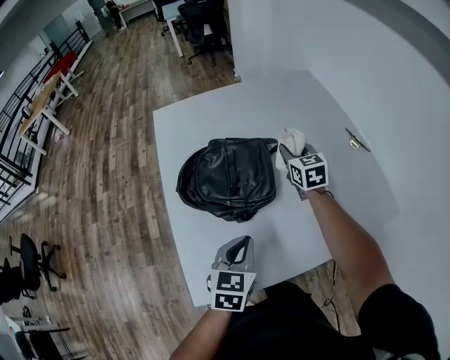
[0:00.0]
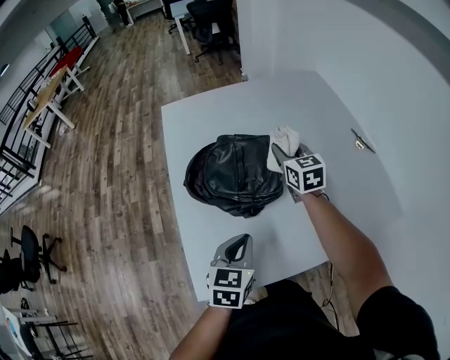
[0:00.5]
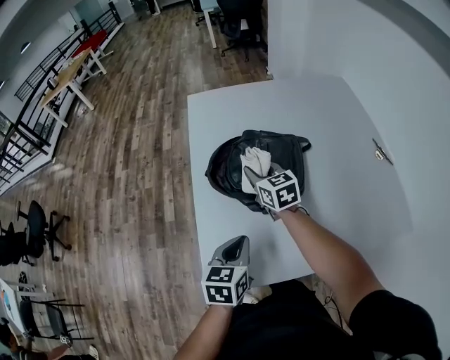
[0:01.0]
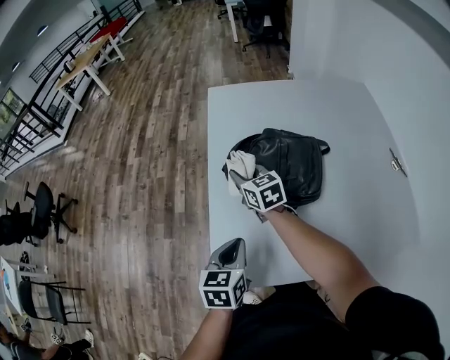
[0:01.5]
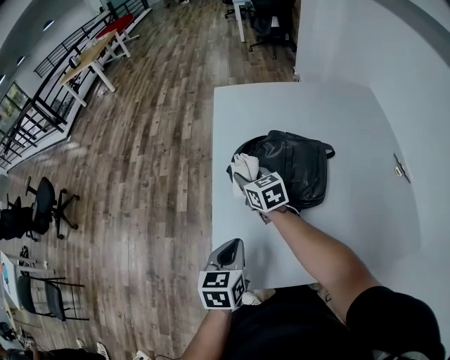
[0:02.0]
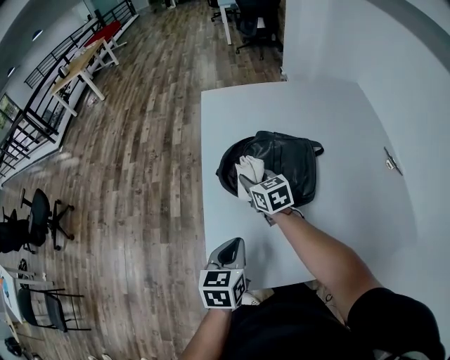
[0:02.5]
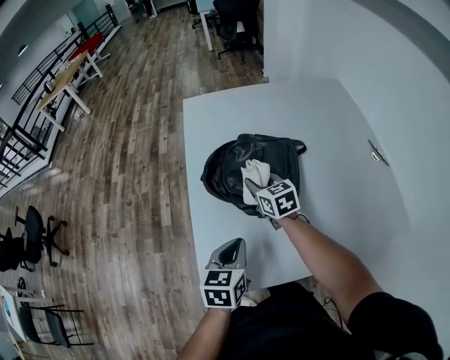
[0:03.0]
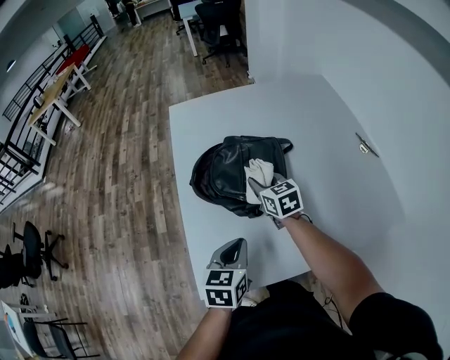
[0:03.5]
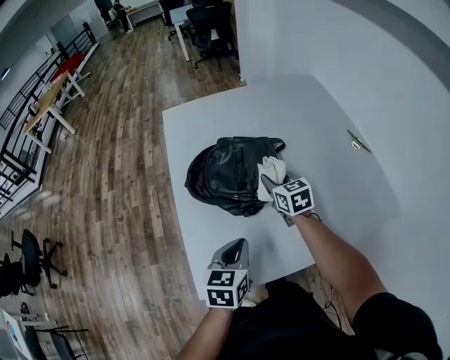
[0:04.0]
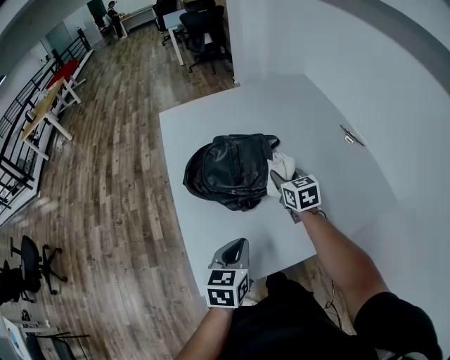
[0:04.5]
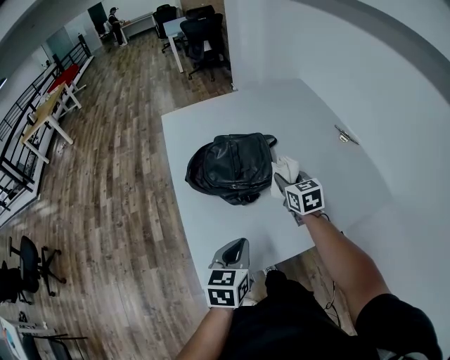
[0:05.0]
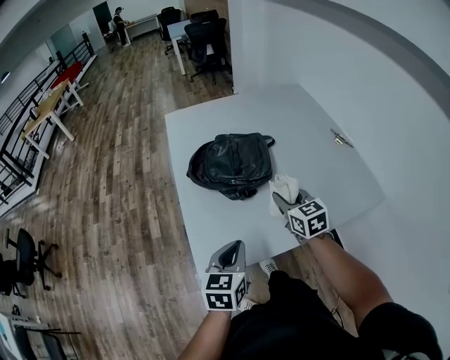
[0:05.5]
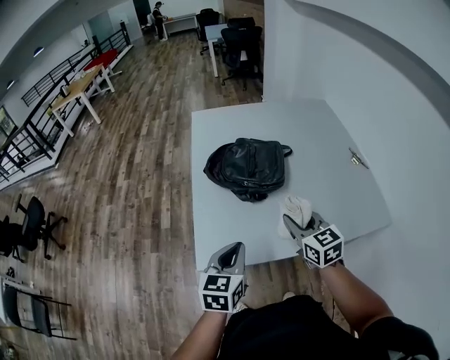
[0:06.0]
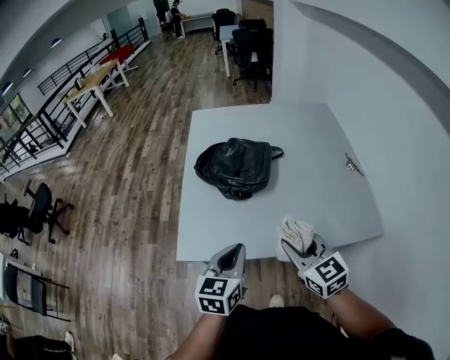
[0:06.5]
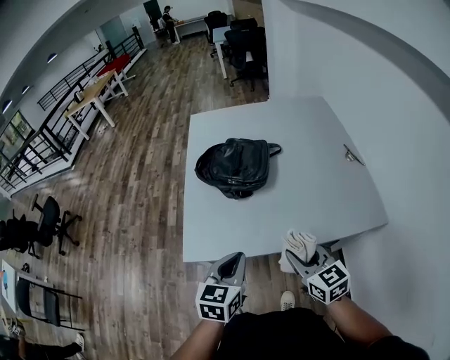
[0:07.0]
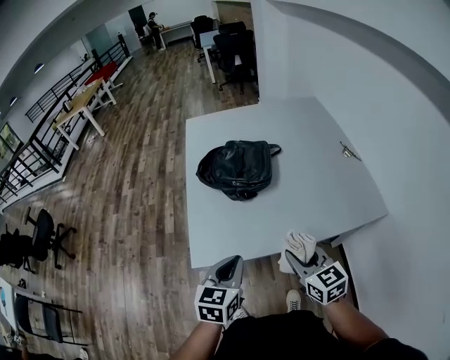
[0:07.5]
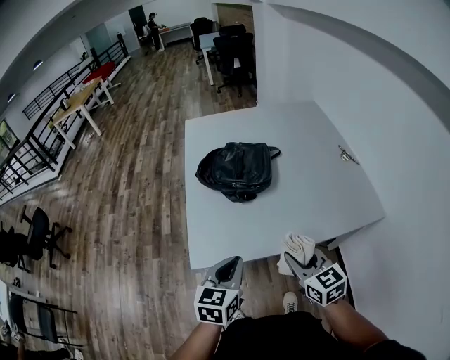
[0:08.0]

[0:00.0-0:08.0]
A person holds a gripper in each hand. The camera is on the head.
0:00.0 to 0:02.0: The left gripper shifts by approximately 15 cm, and turns by roughly 30 degrees. Meanwhile the right gripper shifts by about 35 cm, and turns by roughly 30 degrees.
0:02.0 to 0:04.0: The right gripper goes some 25 cm to the right, and turns by about 20 degrees; the left gripper is displaced to the right by some 10 cm.
0:04.0 to 0:06.0: The right gripper travels backward and upward by about 25 cm. The left gripper shifts some 15 cm backward and upward.
0:06.0 to 0:08.0: The left gripper heads backward, covering approximately 5 cm, and goes to the right and returns, roughly 10 cm each way; the right gripper travels backward by roughly 15 cm.

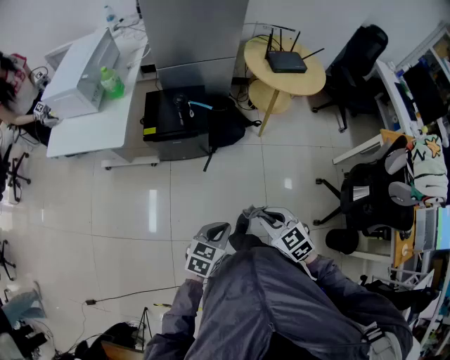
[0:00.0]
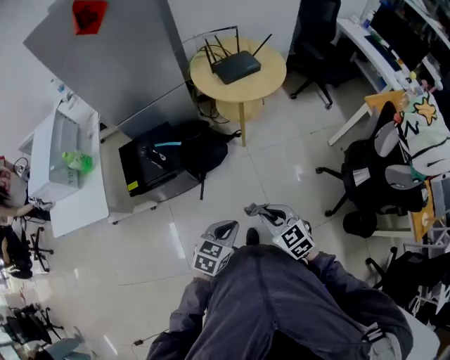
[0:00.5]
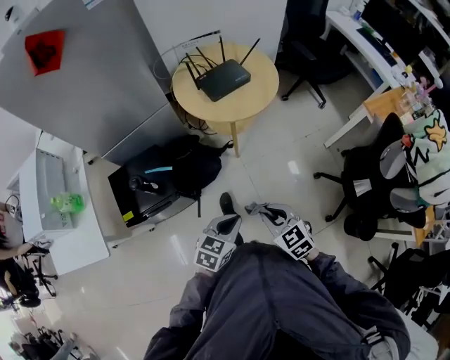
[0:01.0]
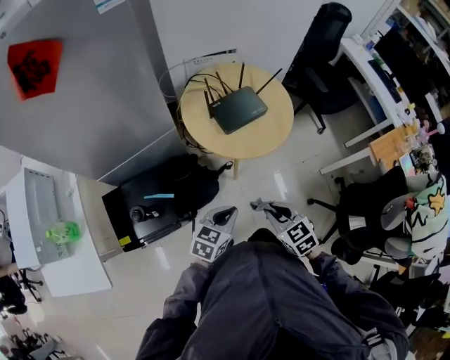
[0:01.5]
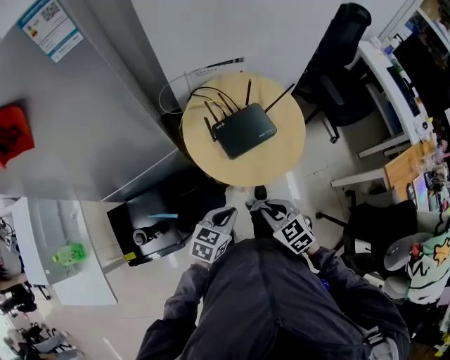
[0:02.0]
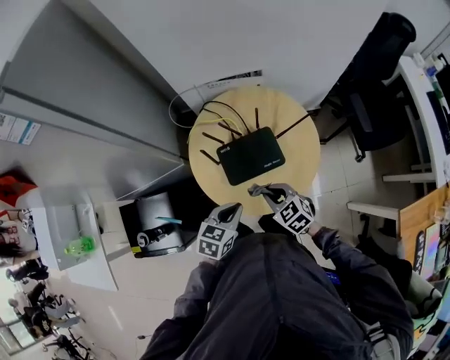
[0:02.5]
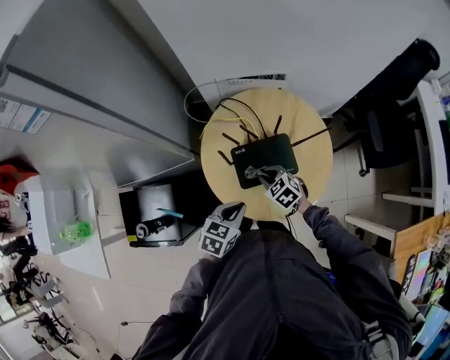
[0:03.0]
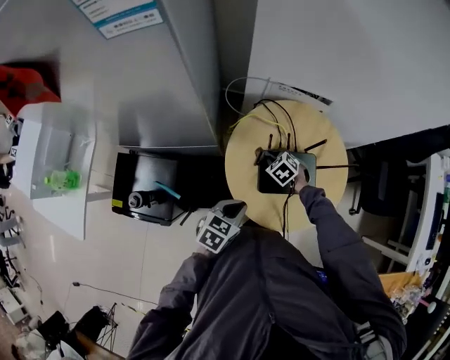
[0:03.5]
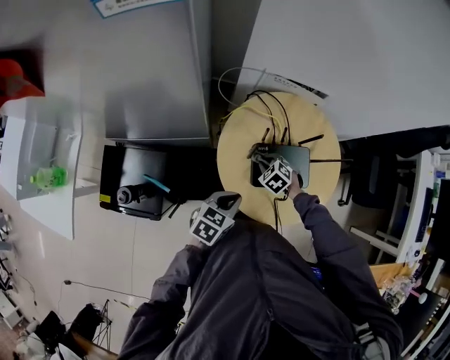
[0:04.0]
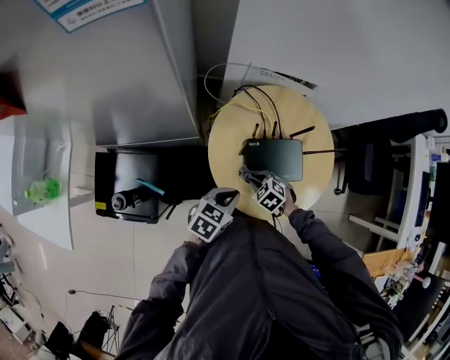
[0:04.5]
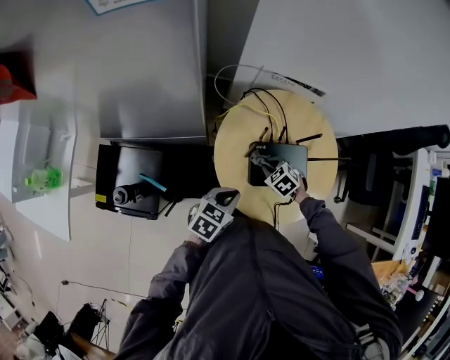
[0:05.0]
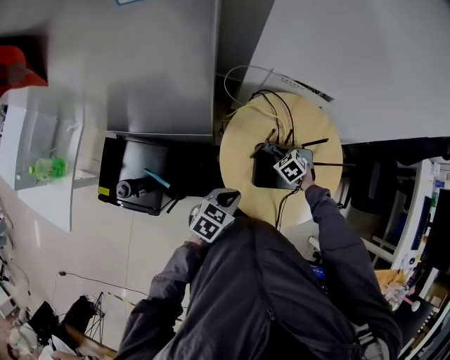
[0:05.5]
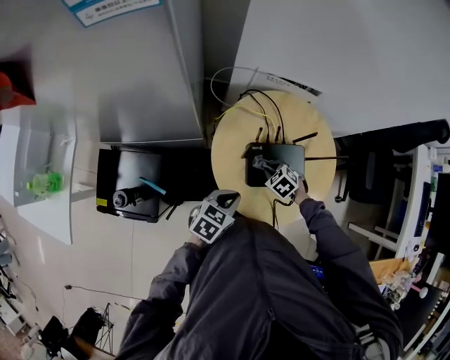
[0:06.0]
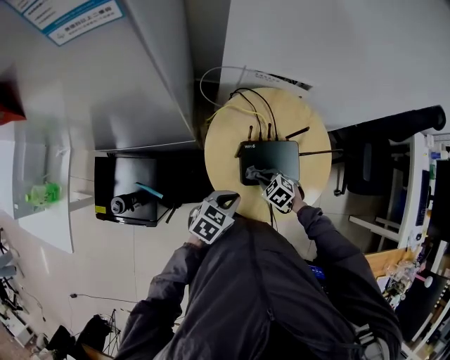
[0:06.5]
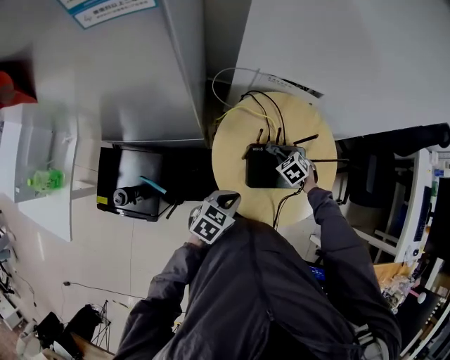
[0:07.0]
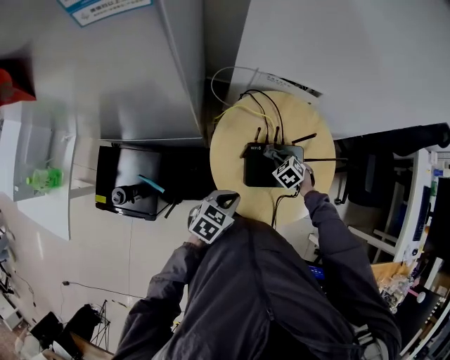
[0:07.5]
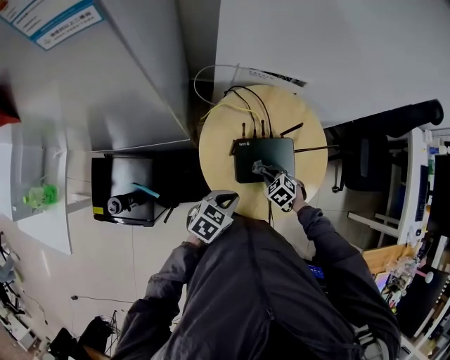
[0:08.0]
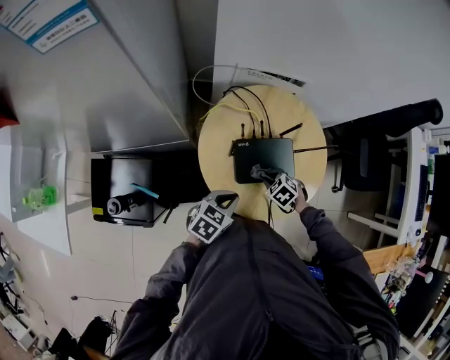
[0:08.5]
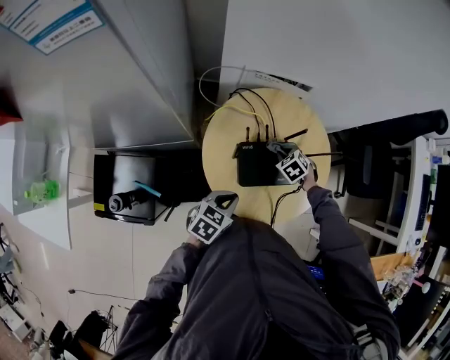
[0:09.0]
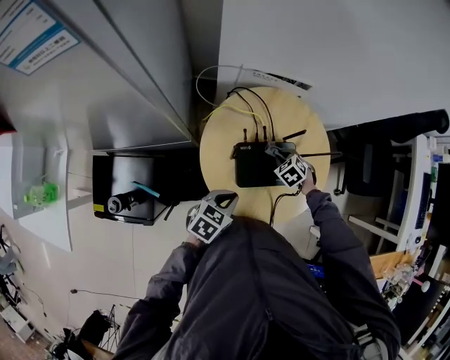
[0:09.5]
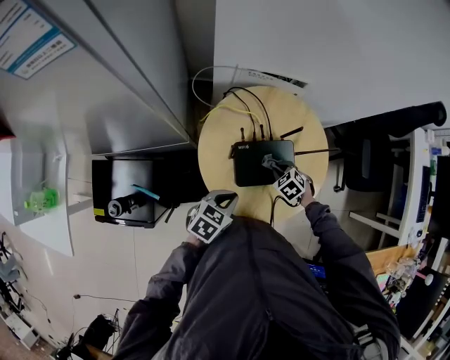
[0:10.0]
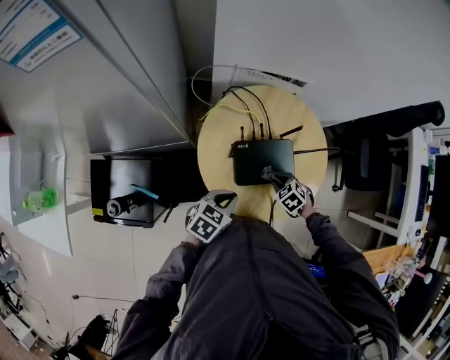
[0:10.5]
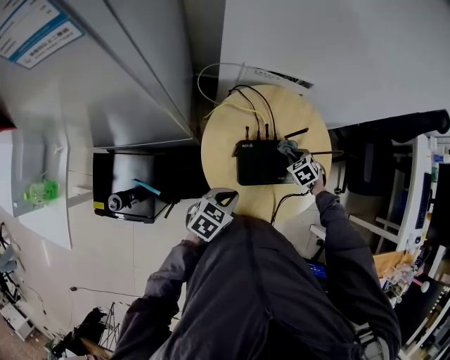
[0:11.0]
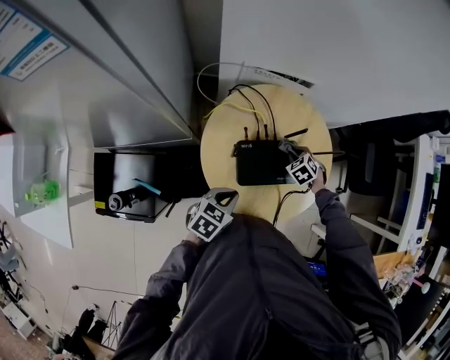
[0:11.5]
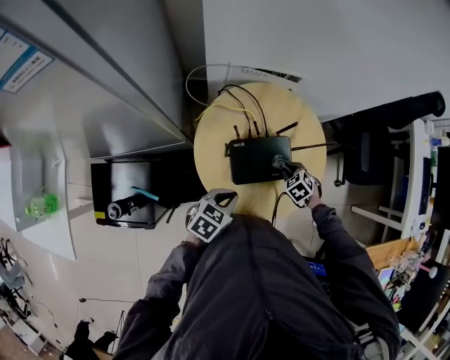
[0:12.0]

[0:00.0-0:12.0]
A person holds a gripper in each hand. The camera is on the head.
0:00.0 to 0:02.0: The pair of grippers is taken forward, about 60 cm.
0:02.0 to 0:04.0: The right gripper moves forward and downward, approximately 35 cm, and changes its angle by about 40 degrees. The left gripper goes approximately 15 cm forward, and changes its angle by about 20 degrees.
0:04.0 to 0:06.0: The right gripper goes forward and backward, approximately 15 cm each way, reversing 2 times.
0:06.0 to 0:08.0: The right gripper moves forward and backward over about 10 cm, changing direction 2 times.
0:10.0 to 0:12.0: The right gripper goes forward and backward, roughly 15 cm each way, reversing 2 times.

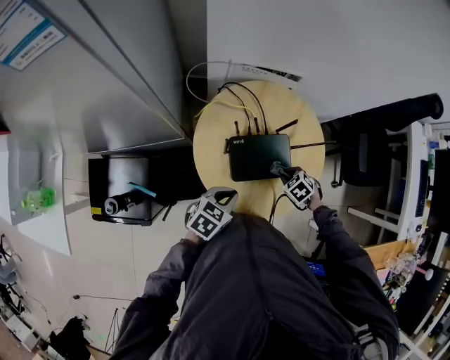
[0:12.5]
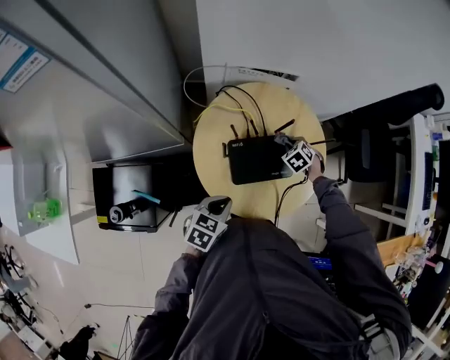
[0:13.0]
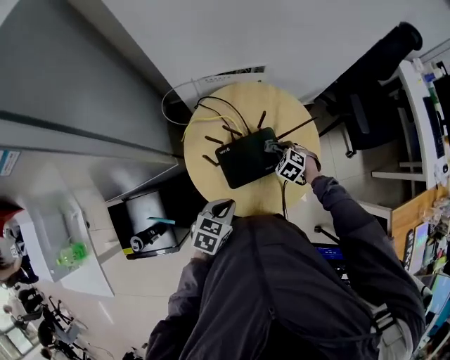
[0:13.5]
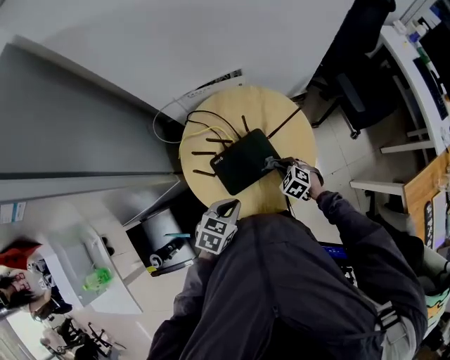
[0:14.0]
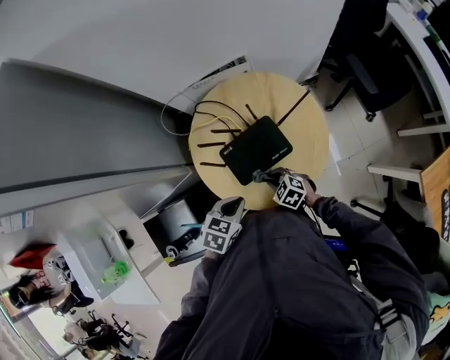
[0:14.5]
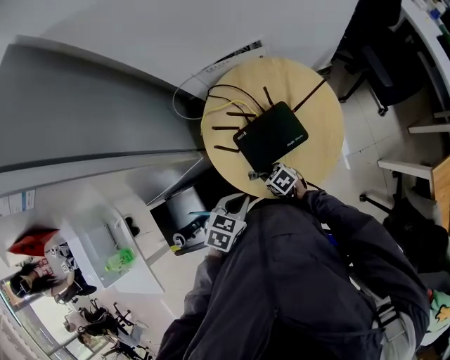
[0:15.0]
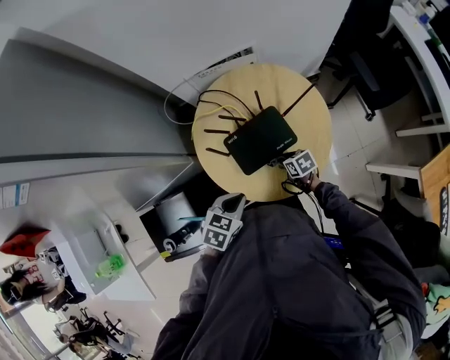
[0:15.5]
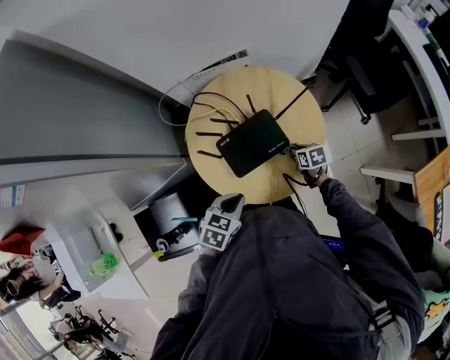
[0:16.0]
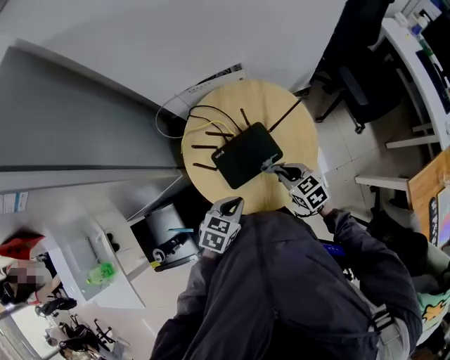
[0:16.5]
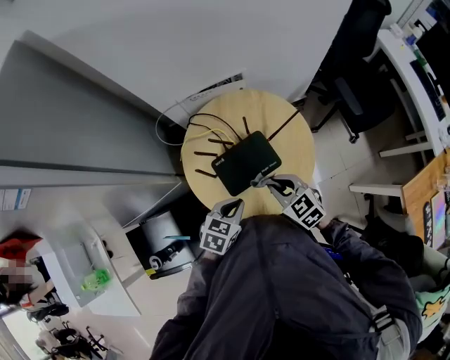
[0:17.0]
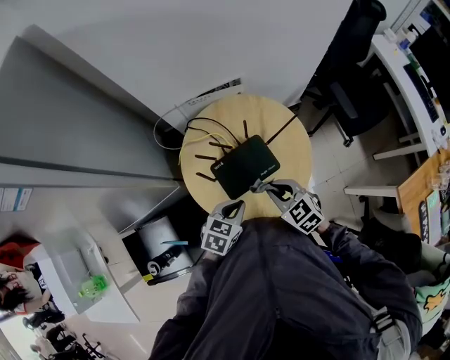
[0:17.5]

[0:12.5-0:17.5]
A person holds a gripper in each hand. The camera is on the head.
0:12.5 to 0:15.0: The left gripper moves approximately 5 cm. The right gripper changes place by some 20 cm, and changes its angle by some 40 degrees.
0:15.0 to 0:17.5: The right gripper is displaced upward by about 20 cm, and turns by about 30 degrees; the left gripper ends up some 10 cm from where it was.

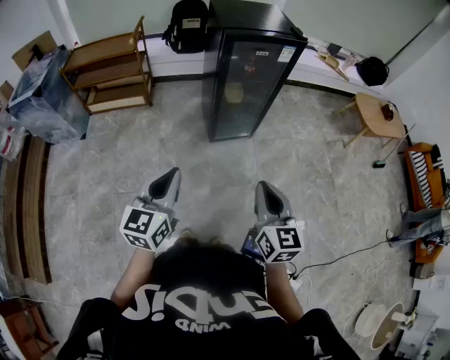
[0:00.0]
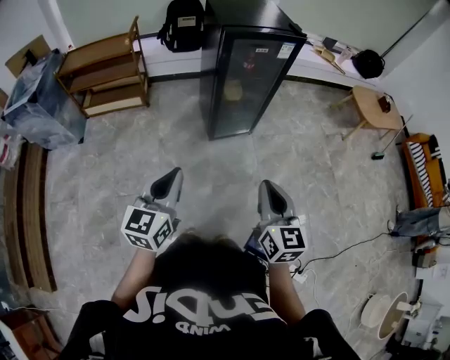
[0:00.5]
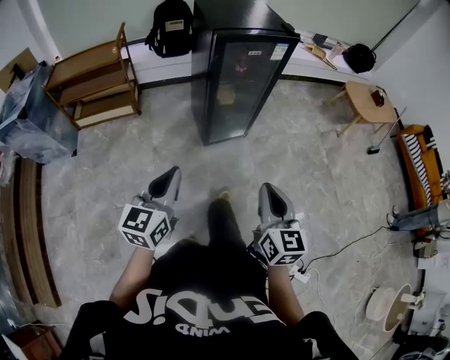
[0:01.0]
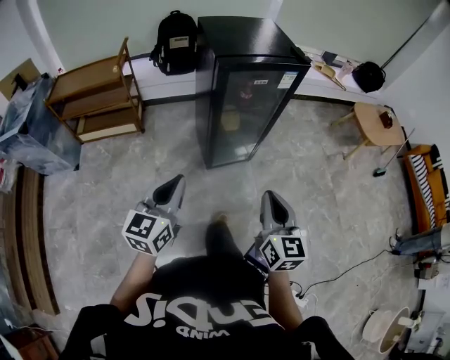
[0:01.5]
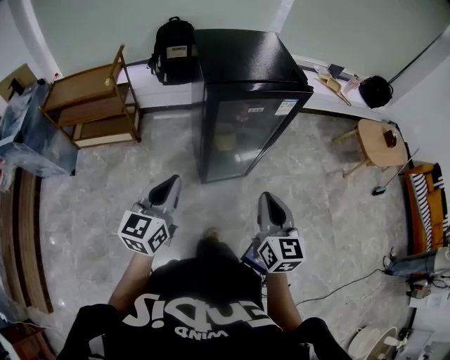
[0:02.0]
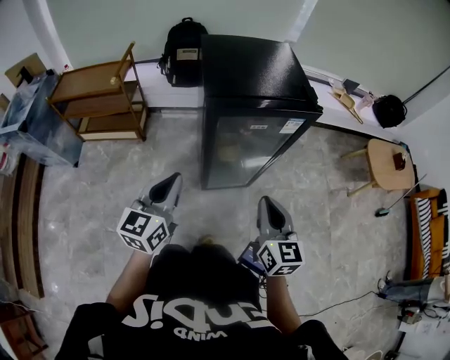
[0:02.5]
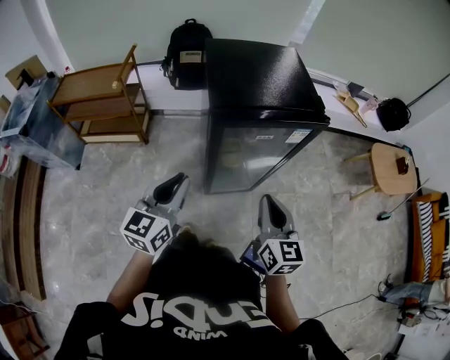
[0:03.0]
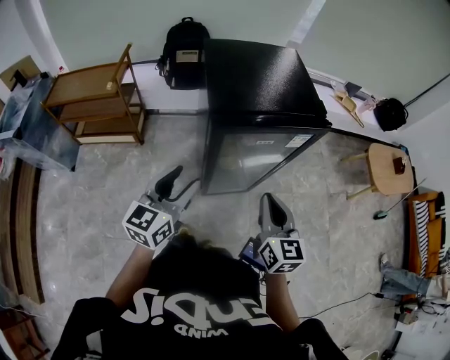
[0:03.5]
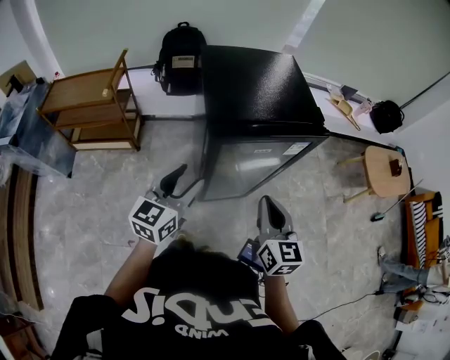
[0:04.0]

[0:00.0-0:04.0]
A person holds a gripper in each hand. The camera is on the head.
0:00.0 to 0:02.0: The two grippers go roughly 35 cm forward.
0:02.0 to 0:04.0: Both grippers travel together forward, roughly 15 cm. The left gripper opens its fingers.
